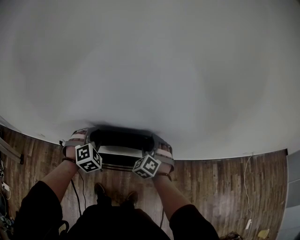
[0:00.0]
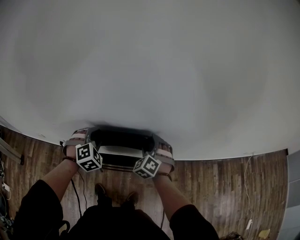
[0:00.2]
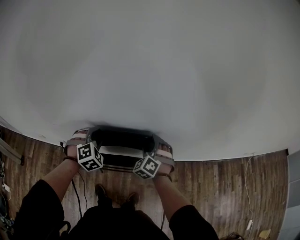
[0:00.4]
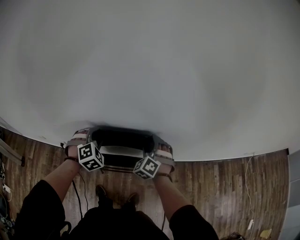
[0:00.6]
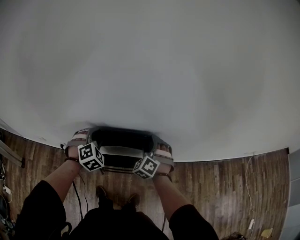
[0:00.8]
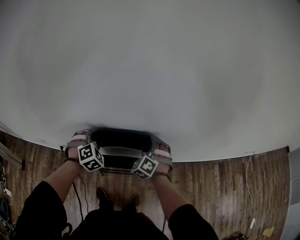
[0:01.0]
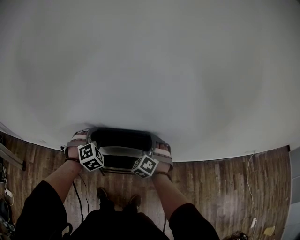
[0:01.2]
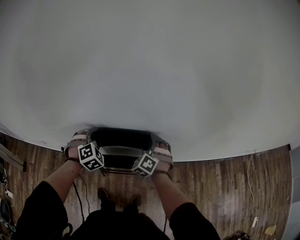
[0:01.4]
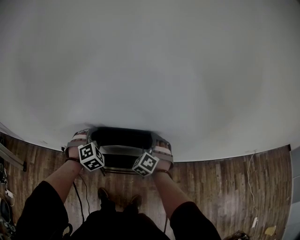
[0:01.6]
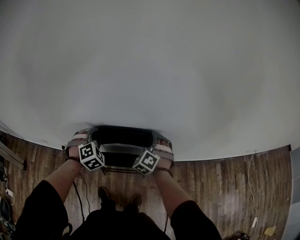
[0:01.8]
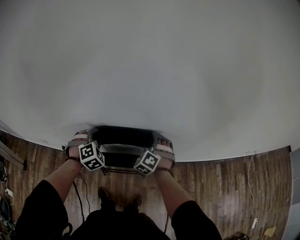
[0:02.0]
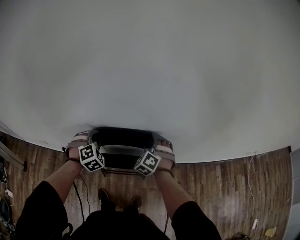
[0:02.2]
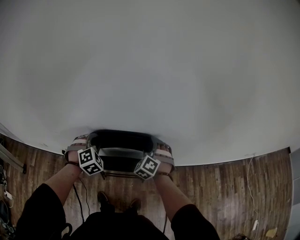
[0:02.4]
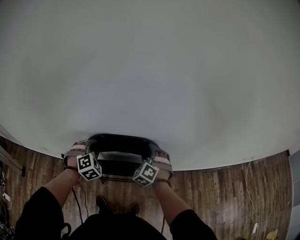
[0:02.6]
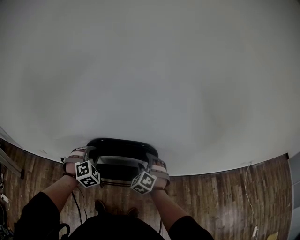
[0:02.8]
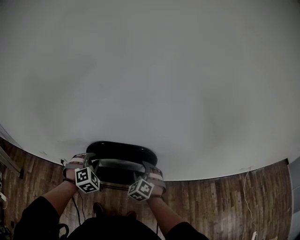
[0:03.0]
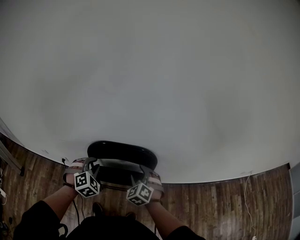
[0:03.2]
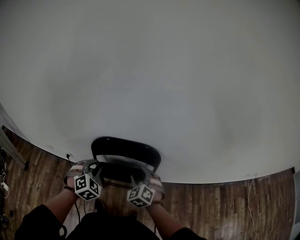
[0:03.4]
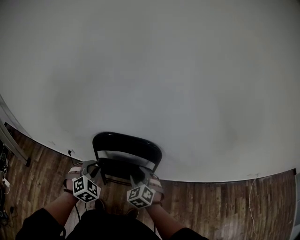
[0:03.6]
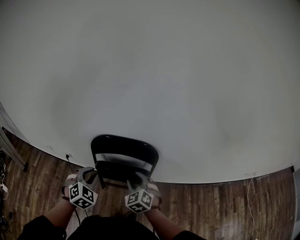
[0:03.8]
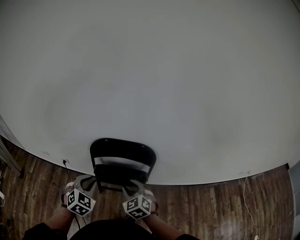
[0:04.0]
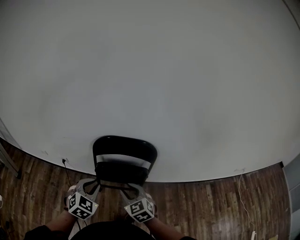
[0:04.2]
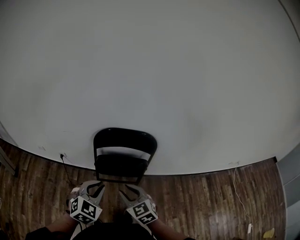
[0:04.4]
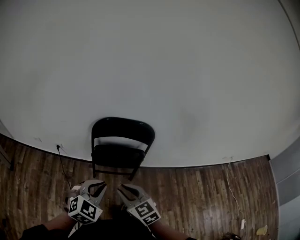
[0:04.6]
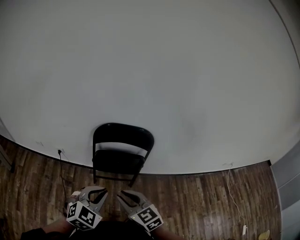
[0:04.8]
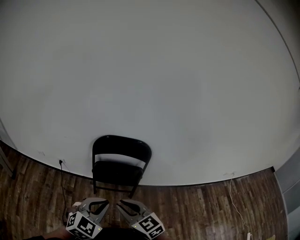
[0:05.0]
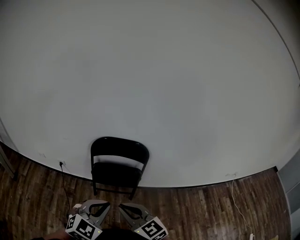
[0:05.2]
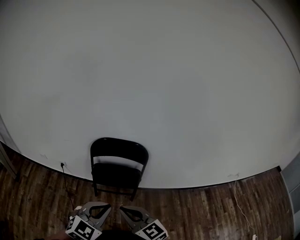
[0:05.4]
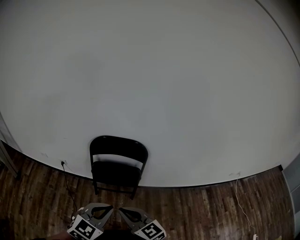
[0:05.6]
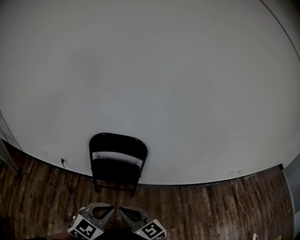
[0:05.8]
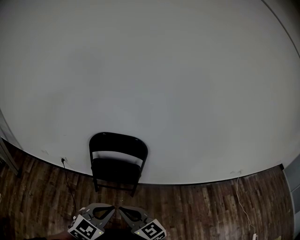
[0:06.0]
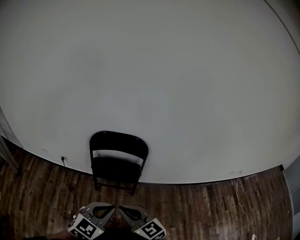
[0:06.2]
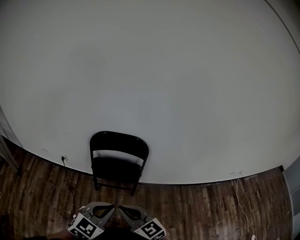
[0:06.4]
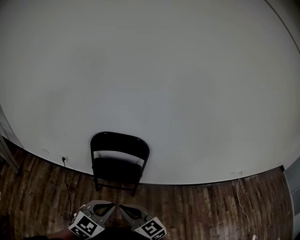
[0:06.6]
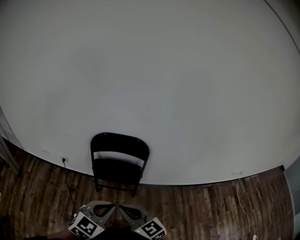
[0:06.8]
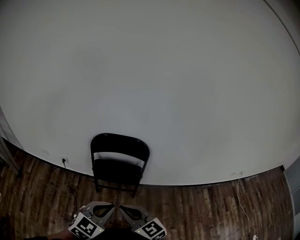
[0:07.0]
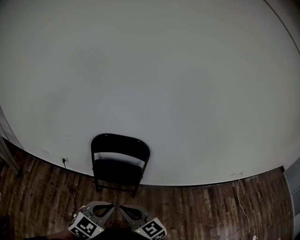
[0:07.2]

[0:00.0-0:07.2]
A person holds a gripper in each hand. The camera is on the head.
0:00.0 to 0:01.4: The grippers move only a little.
0:01.4 to 0:02.8: The left gripper shifts by roughly 5 cm. Meanwhile the right gripper changes place by roughly 5 cm.
0:02.8 to 0:04.4: The right gripper goes roughly 30 cm backward and to the left, rotates about 50 degrees, and closes; the left gripper shifts some 25 cm backward, and swivels about 40 degrees.
0:04.4 to 0:05.8: The left gripper shifts some 20 cm backward, to the right and upward, while the right gripper shifts approximately 15 cm backward, upward and to the right, swivels roughly 20 degrees, and closes its fingers.
0:05.8 to 0:07.2: There are only small adjustments of the grippers.

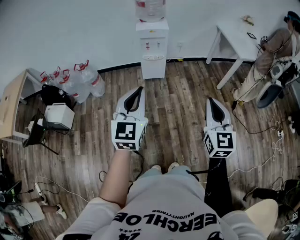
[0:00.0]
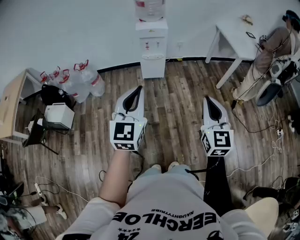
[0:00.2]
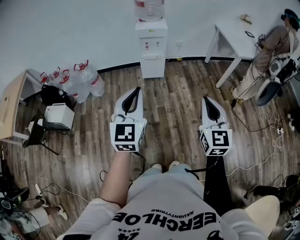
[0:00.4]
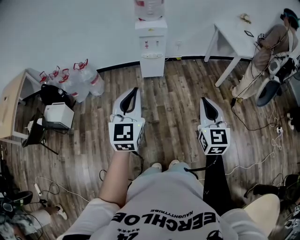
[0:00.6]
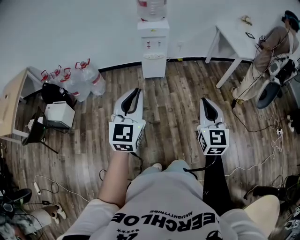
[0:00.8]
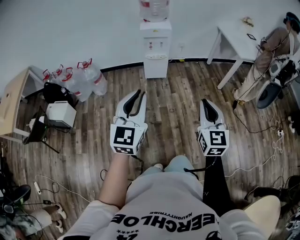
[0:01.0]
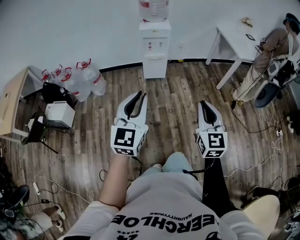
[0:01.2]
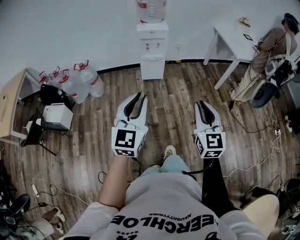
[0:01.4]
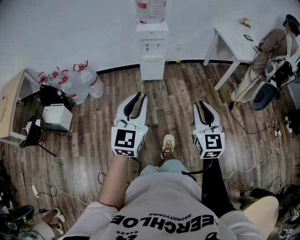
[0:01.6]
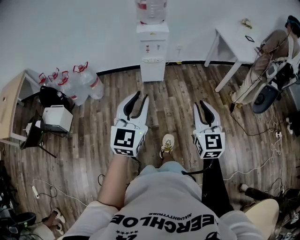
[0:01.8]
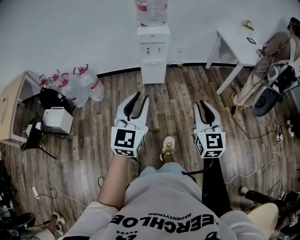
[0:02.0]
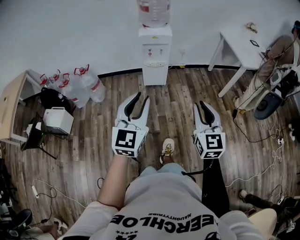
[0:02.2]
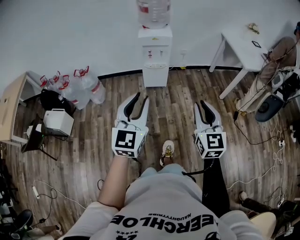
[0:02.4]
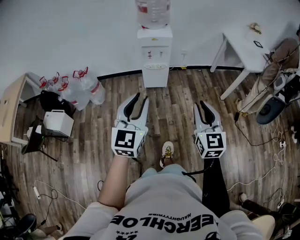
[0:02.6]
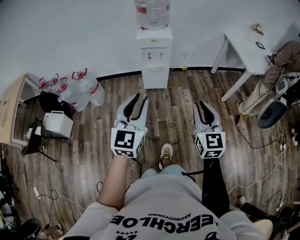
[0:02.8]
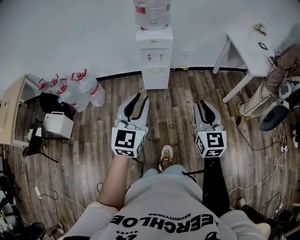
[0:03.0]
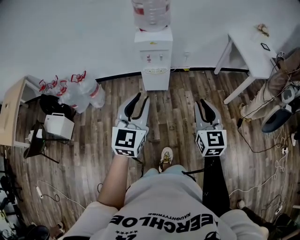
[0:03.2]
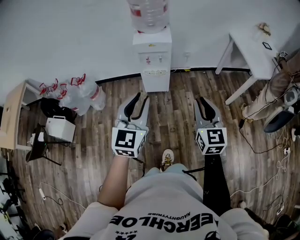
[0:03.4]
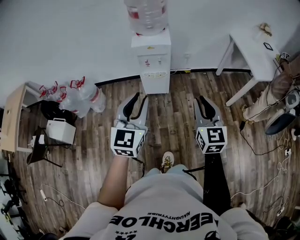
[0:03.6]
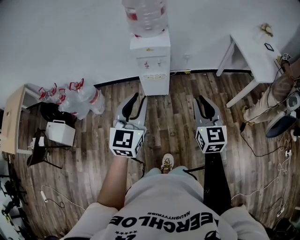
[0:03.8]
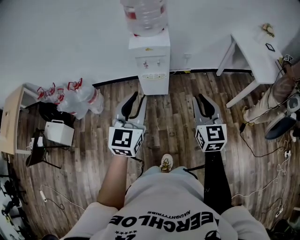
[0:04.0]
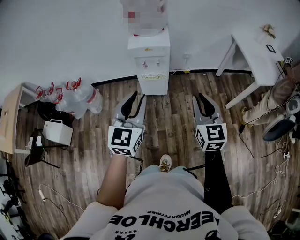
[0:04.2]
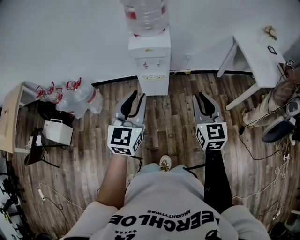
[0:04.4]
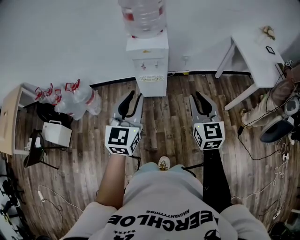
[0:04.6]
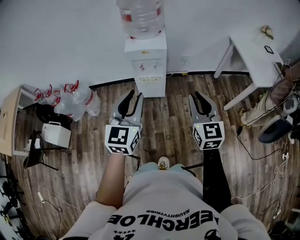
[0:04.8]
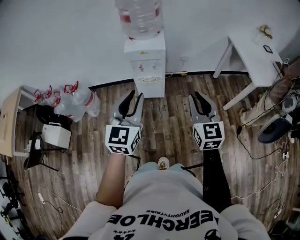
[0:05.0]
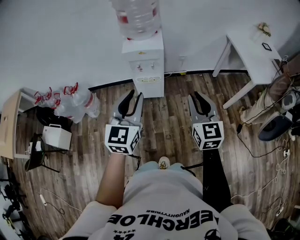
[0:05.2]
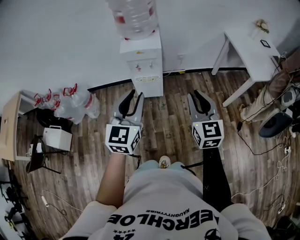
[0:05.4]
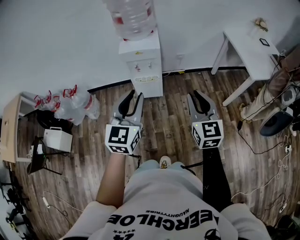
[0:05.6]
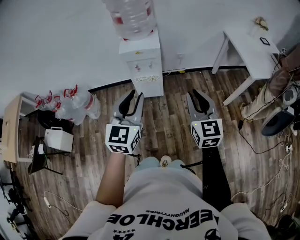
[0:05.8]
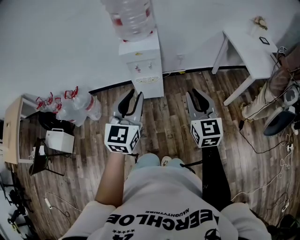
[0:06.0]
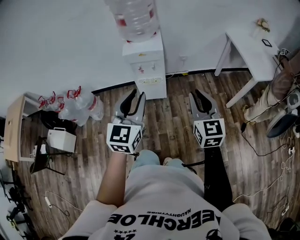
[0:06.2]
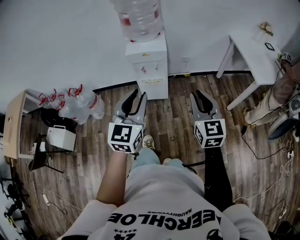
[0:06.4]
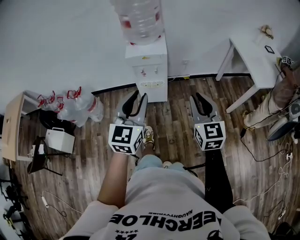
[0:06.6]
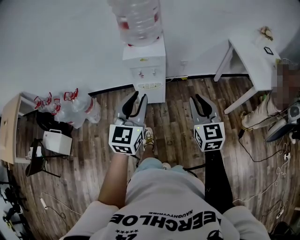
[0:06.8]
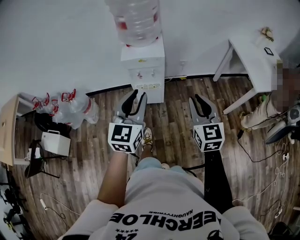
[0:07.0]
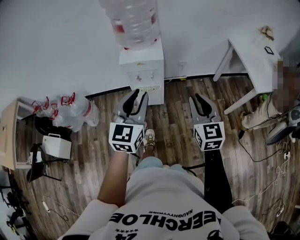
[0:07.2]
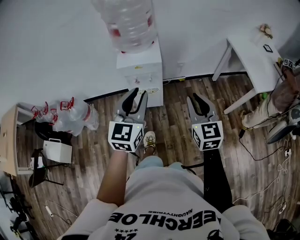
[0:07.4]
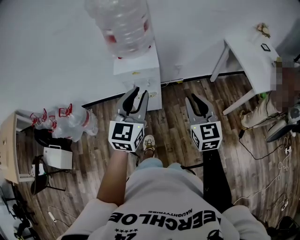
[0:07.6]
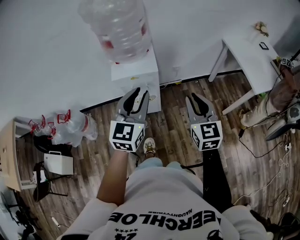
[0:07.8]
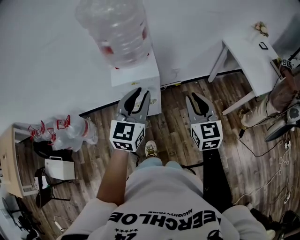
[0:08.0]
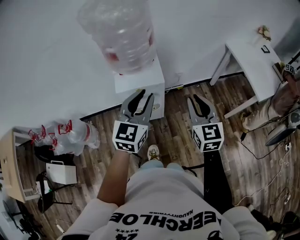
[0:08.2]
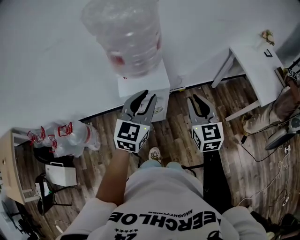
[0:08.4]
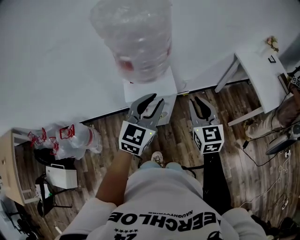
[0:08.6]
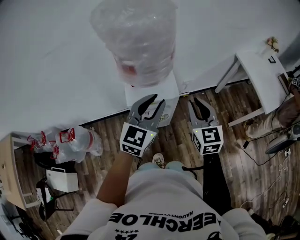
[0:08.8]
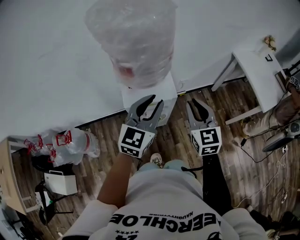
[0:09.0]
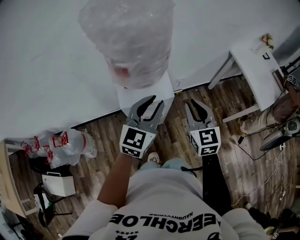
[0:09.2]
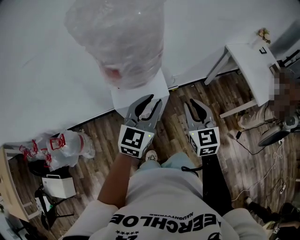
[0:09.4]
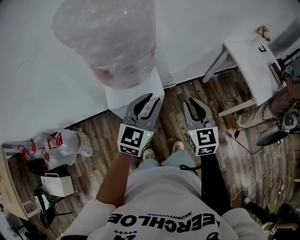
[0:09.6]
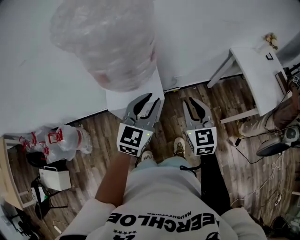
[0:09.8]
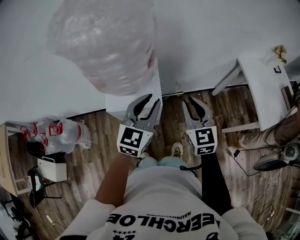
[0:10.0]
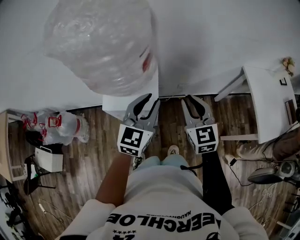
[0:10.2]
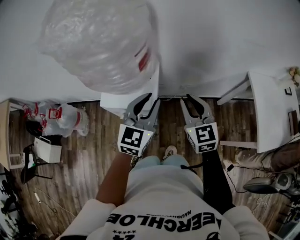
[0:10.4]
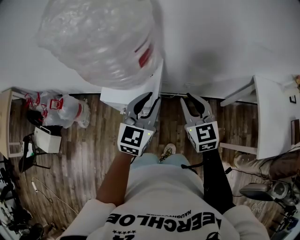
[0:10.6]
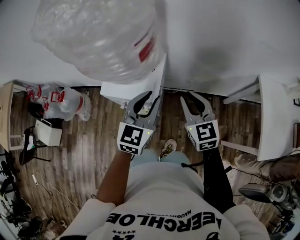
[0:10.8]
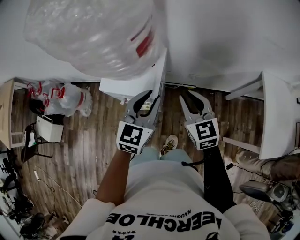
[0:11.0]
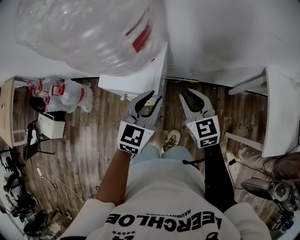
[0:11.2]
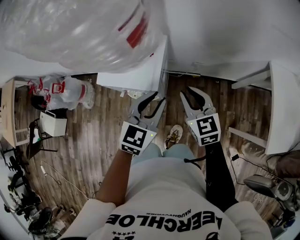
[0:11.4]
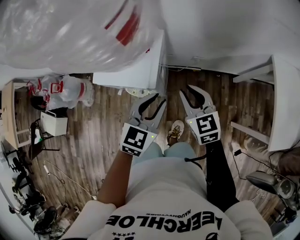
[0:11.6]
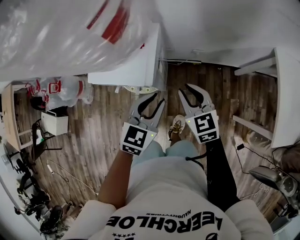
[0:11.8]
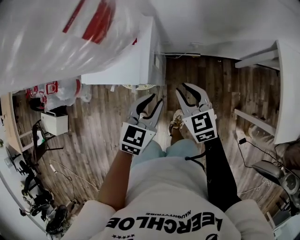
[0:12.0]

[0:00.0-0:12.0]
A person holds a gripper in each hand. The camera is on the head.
0:00.0 to 0:01.6: The right gripper is displaced to the left by about 5 cm.
0:01.6 to 0:03.0: Both grippers move forward, about 20 cm.
0:03.0 to 0:04.4: The grippers both shift forward by some 20 cm.
0:04.4 to 0:06.0: There are only small adjustments of the grippers.
0:06.0 to 0:07.6: The two grippers go some 15 cm forward.
0:07.6 to 0:09.0: Both grippers travel together forward and to the left, roughly 25 cm.
0:09.0 to 0:10.4: Both grippers move forward and to the right, roughly 15 cm. The right gripper rotates approximately 20 degrees.
0:10.4 to 0:12.0: Both grippers travel together downward, about 20 cm. The right gripper rotates some 20 degrees. Meanwhile the left gripper changes its angle by some 30 degrees.

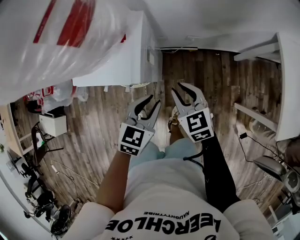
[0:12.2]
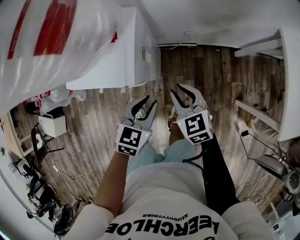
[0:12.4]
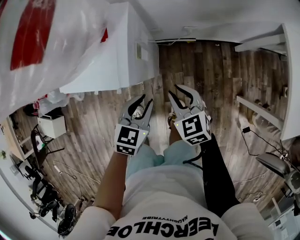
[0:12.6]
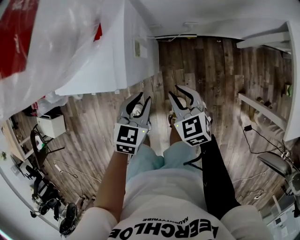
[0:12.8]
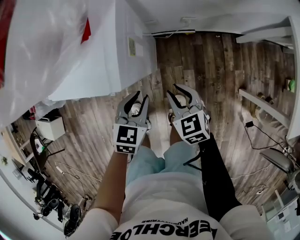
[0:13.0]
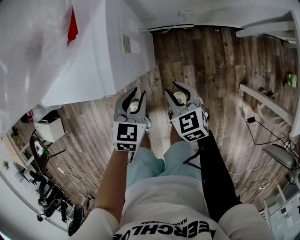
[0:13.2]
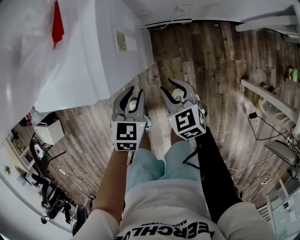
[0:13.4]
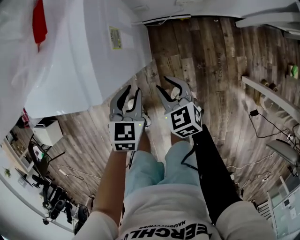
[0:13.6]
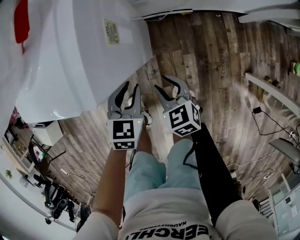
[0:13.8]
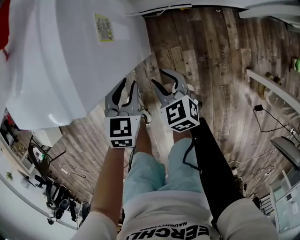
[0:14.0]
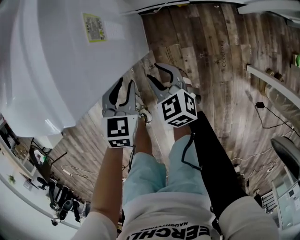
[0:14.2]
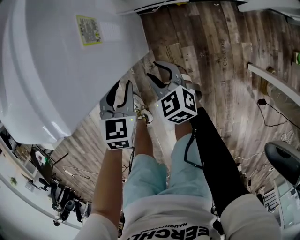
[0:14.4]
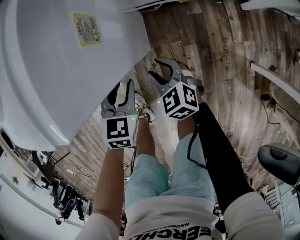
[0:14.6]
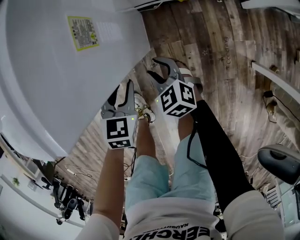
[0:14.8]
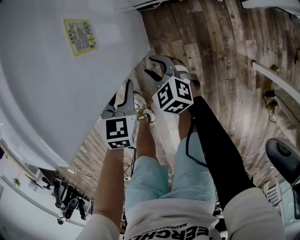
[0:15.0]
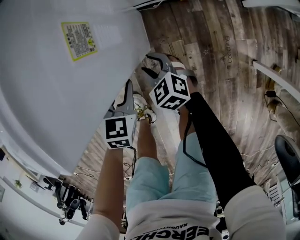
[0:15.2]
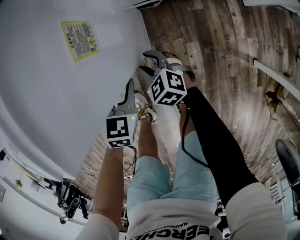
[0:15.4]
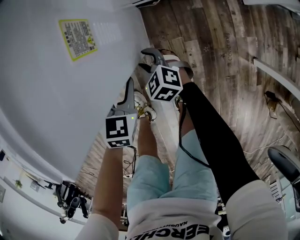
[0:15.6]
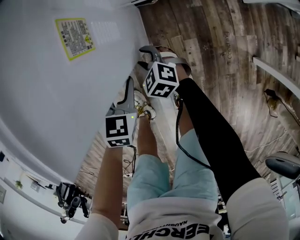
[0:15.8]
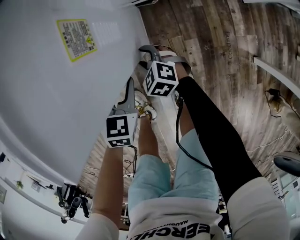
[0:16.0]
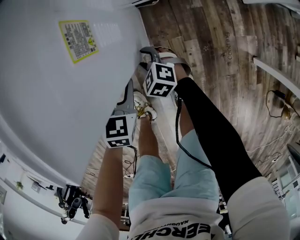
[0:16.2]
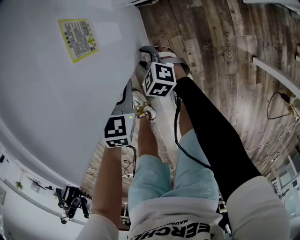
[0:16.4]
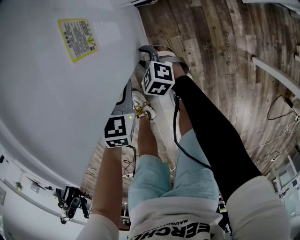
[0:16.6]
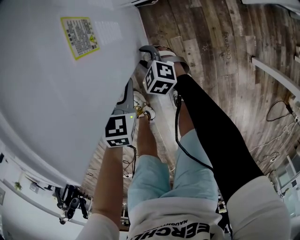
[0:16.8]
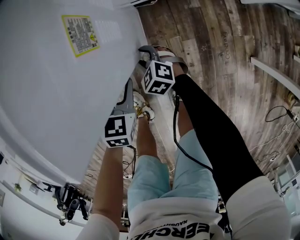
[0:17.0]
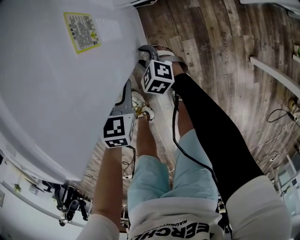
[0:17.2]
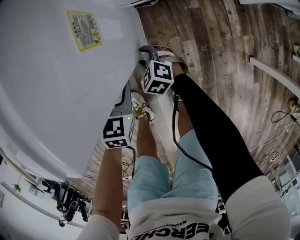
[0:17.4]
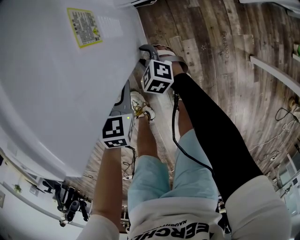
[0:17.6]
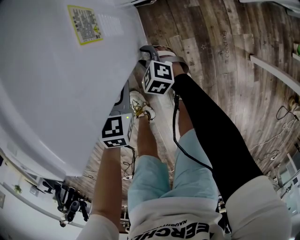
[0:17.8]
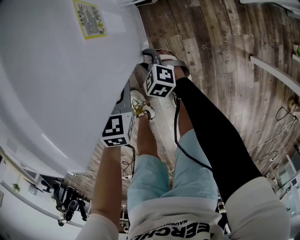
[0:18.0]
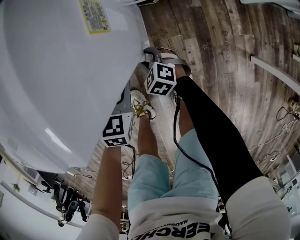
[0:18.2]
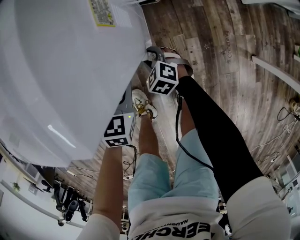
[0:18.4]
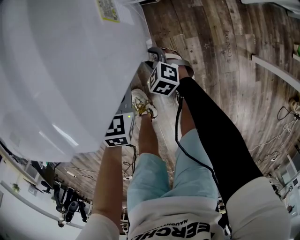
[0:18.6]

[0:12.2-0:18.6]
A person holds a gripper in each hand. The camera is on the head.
0:12.2 to 0:13.8: The grippers both shift downward by approximately 25 cm.
0:13.8 to 0:15.4: The right gripper travels downward and forward by about 15 cm, while the left gripper is displaced downward by some 10 cm.
0:15.4 to 0:17.0: The right gripper changes place by approximately 5 cm.
0:17.0 to 0:18.6: The grippers make only small movements.
